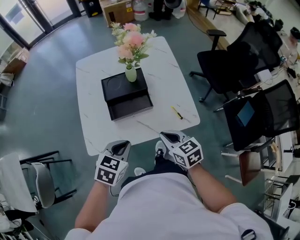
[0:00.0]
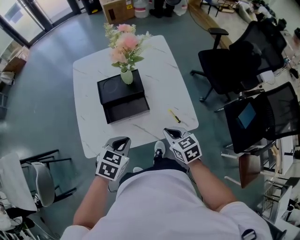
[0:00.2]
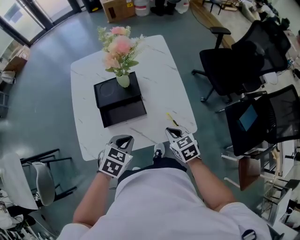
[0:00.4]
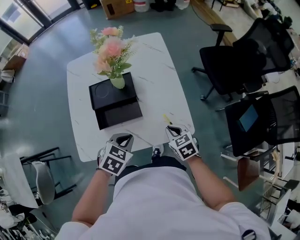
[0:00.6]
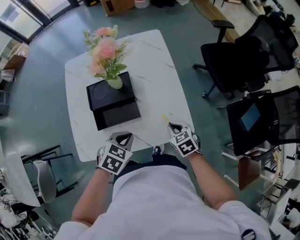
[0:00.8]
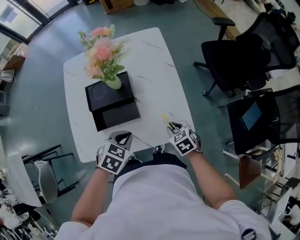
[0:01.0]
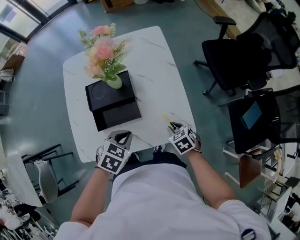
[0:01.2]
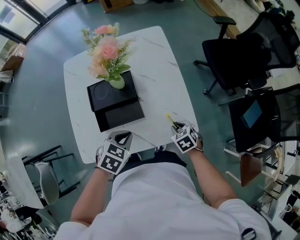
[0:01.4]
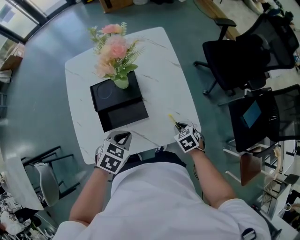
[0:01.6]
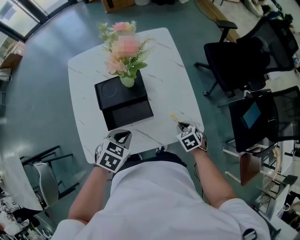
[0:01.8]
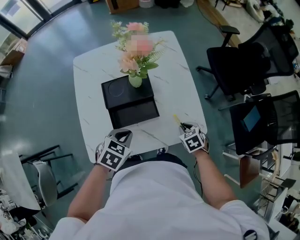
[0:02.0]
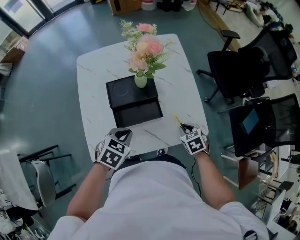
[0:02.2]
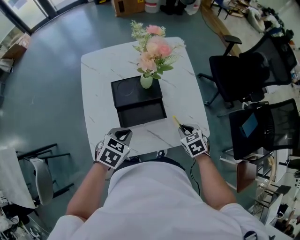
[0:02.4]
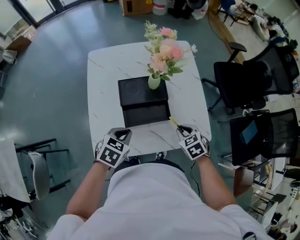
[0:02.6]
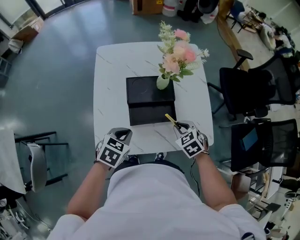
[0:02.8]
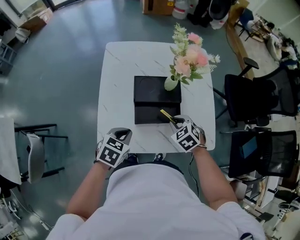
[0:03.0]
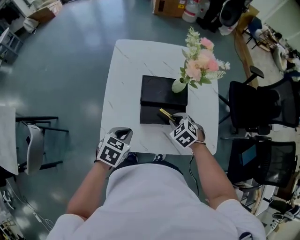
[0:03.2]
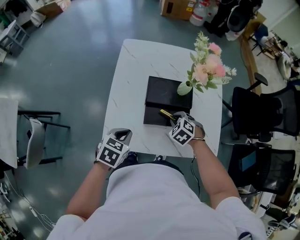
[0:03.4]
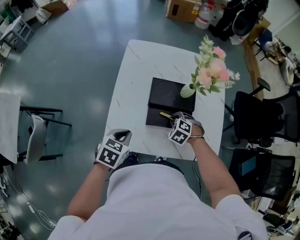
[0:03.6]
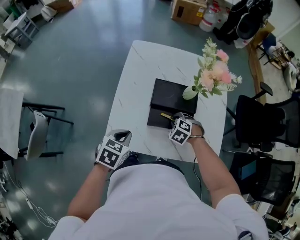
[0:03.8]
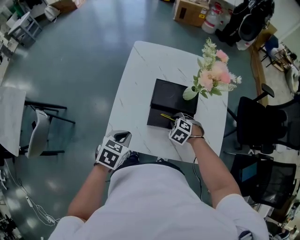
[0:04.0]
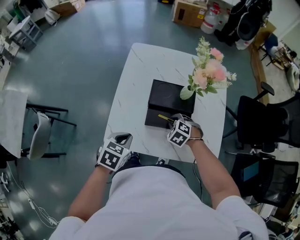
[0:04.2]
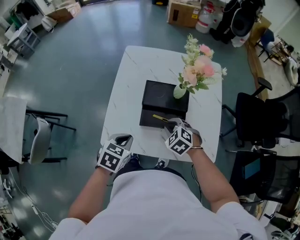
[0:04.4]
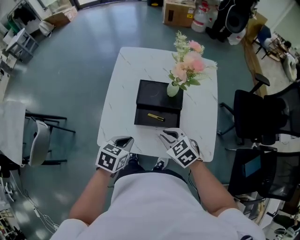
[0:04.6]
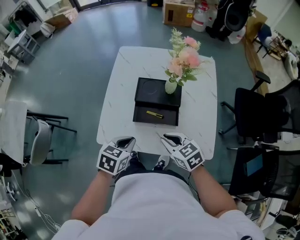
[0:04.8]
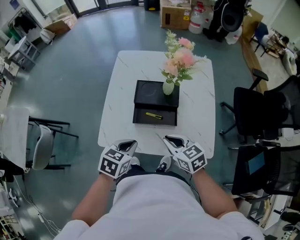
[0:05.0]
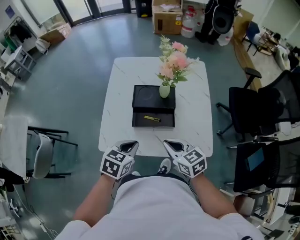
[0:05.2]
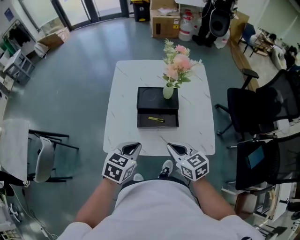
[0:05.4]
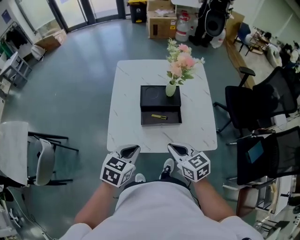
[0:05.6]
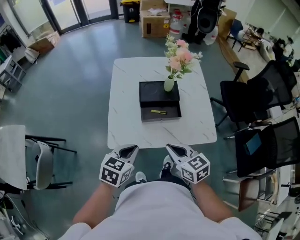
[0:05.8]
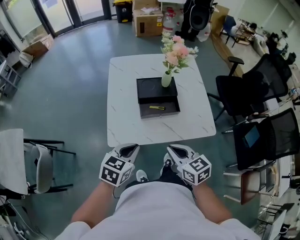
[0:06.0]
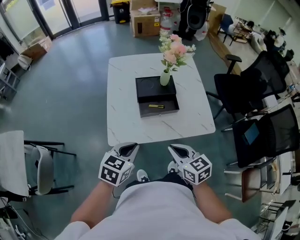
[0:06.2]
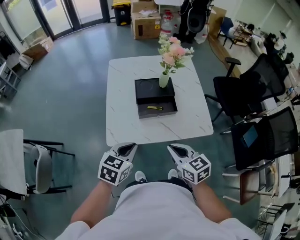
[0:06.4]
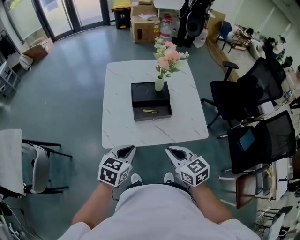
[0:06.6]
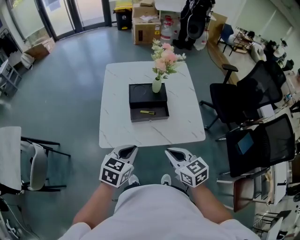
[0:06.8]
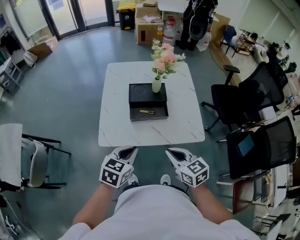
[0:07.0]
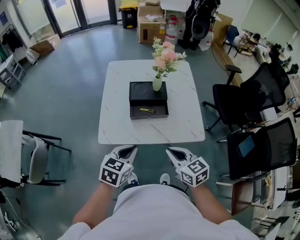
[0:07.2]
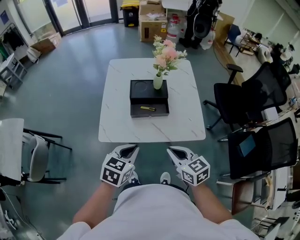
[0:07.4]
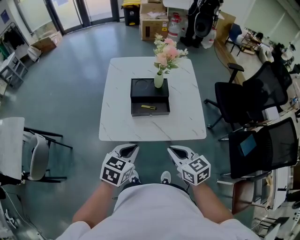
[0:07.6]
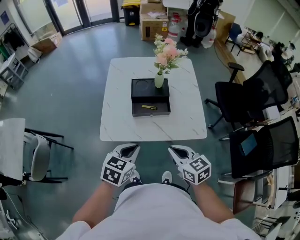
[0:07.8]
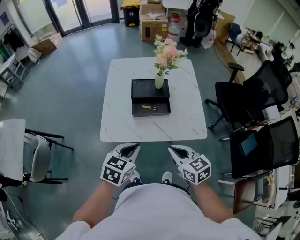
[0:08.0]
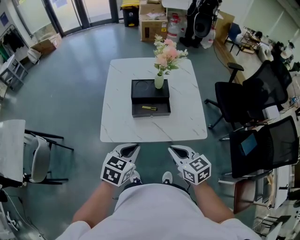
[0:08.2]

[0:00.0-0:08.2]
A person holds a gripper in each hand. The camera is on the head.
0.0 to 1.6 s: The right gripper moves downward, to the right and forward, roughly 20 cm, and points its fingers roughly 30 degrees further downward. Meanwhile the left gripper is displaced forward and downward by about 15 cm.
1.6 to 3.2 s: The two grippers go roughly 20 cm to the left. The left gripper changes its angle by about 20 degrees. Meanwhile the right gripper swivels approximately 40 degrees.
3.2 to 5.0 s: The right gripper is displaced backward and upward by roughly 15 cm, and tilts its fingers approximately 30 degrees upward. The left gripper heads to the right and backward, covering about 10 cm.
5.0 to 6.6 s: The left gripper shifts some 10 cm backward, upward and to the left. Meanwhile the right gripper moves backward and upward, some 15 cm.
6.6 to 8.2 s: The left gripper moves about 5 cm.

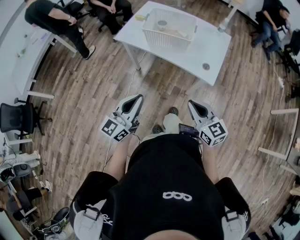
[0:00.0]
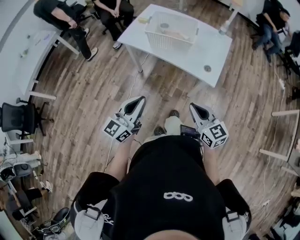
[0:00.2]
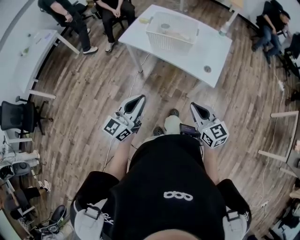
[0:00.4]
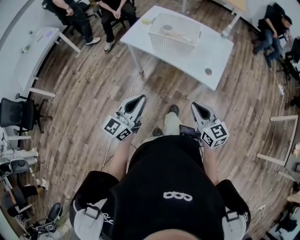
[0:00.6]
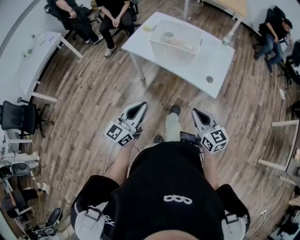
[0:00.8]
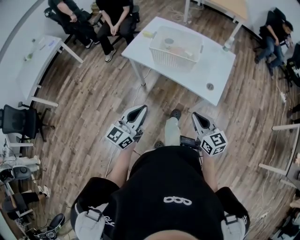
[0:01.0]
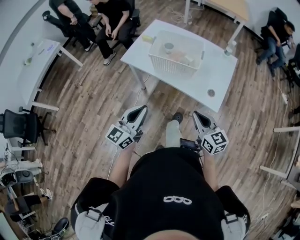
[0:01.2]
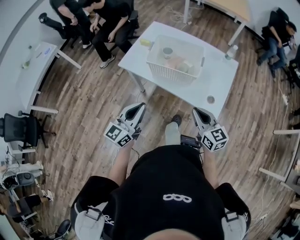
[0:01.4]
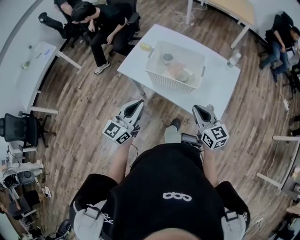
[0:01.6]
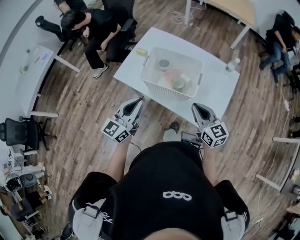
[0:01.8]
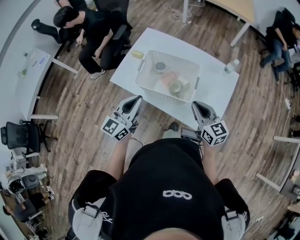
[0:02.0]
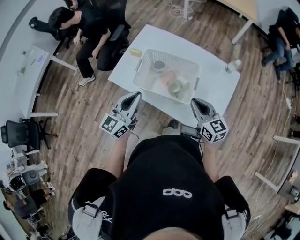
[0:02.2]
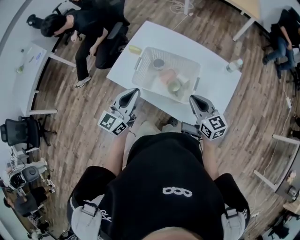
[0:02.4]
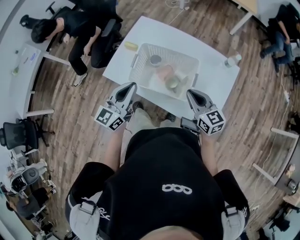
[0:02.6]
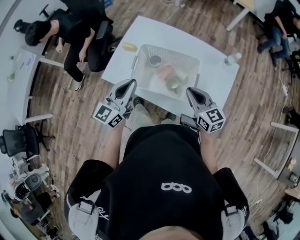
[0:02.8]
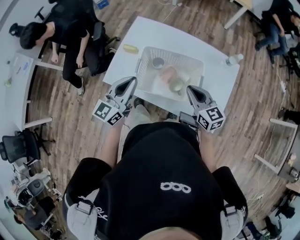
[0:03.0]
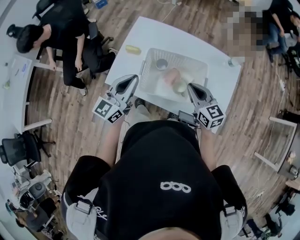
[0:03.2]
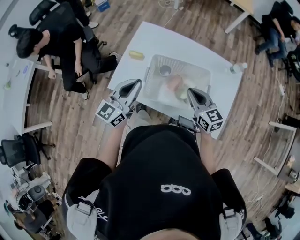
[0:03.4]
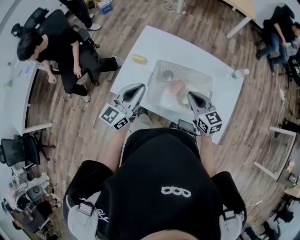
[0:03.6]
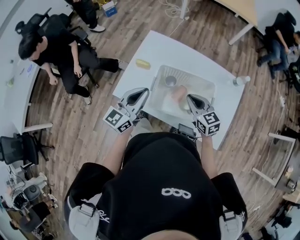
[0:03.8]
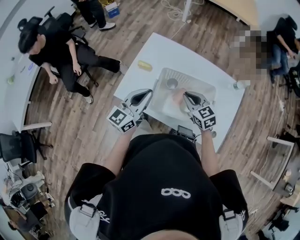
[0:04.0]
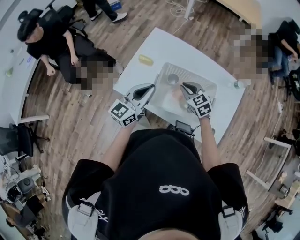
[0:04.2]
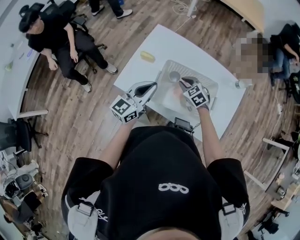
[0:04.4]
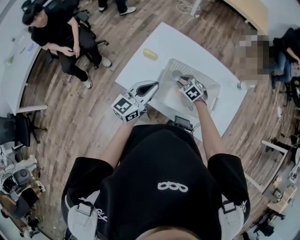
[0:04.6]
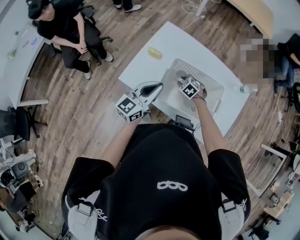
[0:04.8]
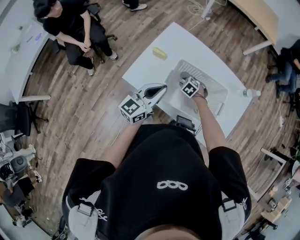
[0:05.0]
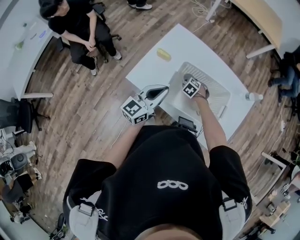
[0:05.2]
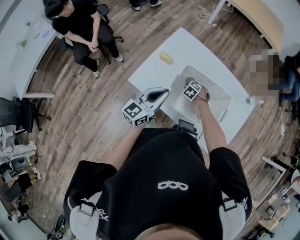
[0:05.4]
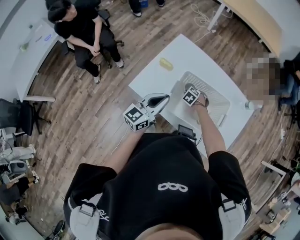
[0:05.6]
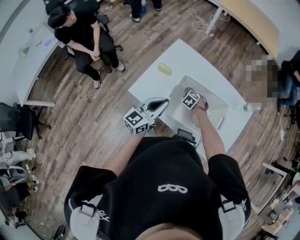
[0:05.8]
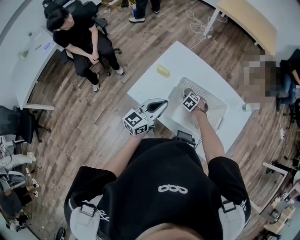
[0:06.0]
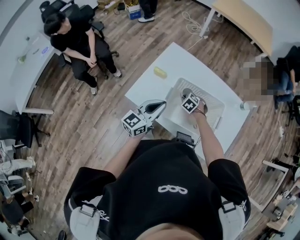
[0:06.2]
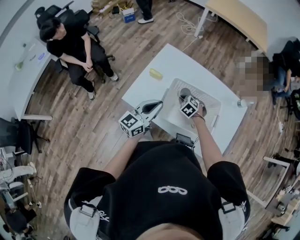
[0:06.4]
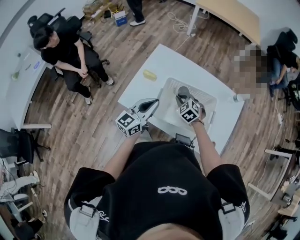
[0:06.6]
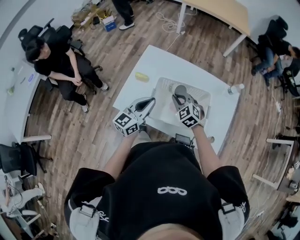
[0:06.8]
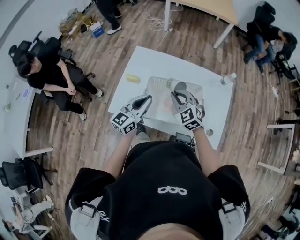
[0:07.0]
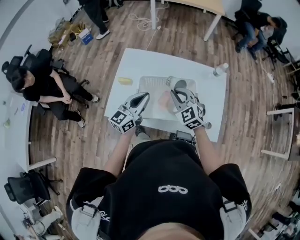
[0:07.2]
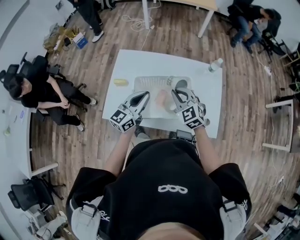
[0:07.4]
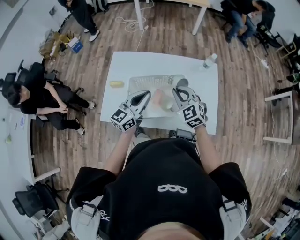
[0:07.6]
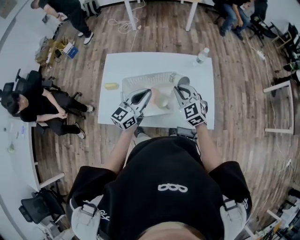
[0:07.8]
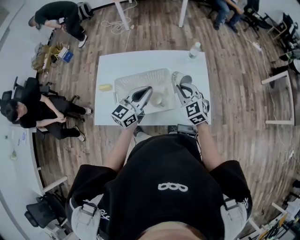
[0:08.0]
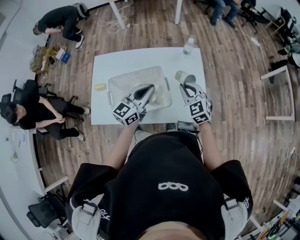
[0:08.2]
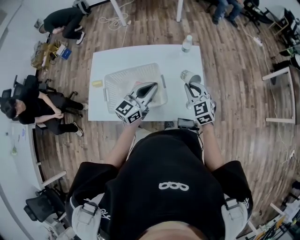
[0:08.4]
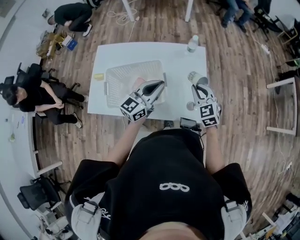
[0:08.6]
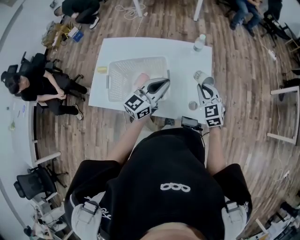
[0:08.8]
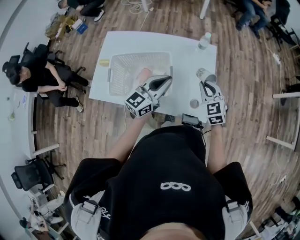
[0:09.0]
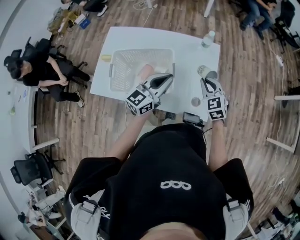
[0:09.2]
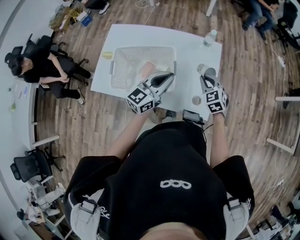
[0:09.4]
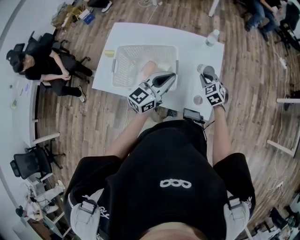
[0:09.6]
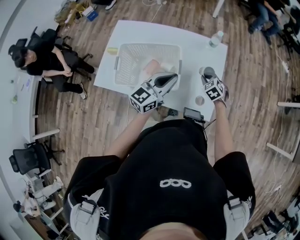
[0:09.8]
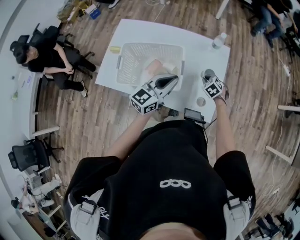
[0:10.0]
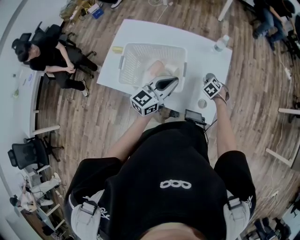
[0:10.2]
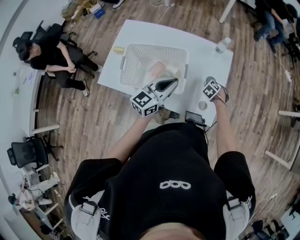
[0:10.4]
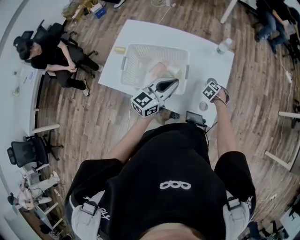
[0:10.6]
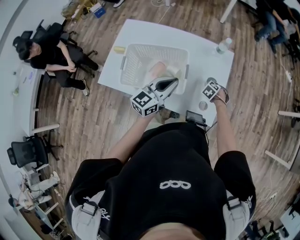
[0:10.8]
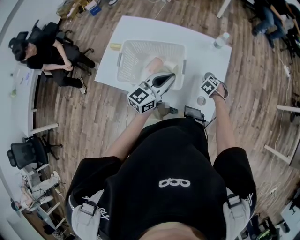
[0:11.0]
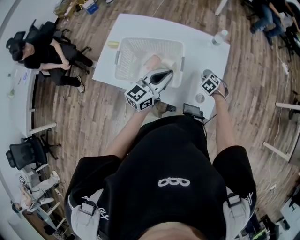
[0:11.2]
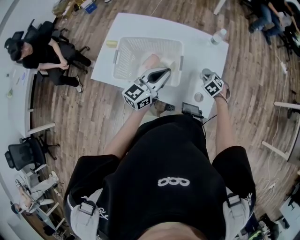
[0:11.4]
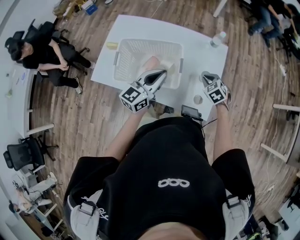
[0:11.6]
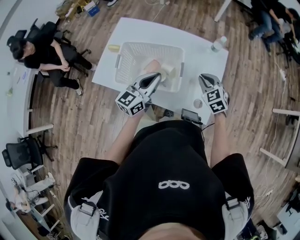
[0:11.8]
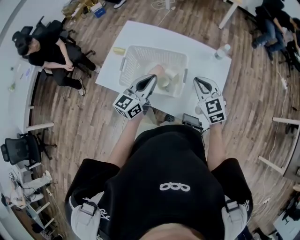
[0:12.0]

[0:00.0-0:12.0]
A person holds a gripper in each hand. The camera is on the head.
0.0 to 1.6 s: Both grippers move forward, about 25 cm.
1.6 to 3.0 s: The grippers both shift forward by approximately 25 cm.
3.0 to 4.4 s: The left gripper ends up some 5 cm from where it was. The right gripper shifts approximately 20 cm downward, forward and to the left, and rotates roughly 40 degrees.
4.4 to 6.0 s: The right gripper is displaced downward by about 15 cm, and turns by about 30 degrees.
6.0 to 7.6 s: The right gripper goes some 25 cm upward, and tips its fingers upward by some 50 degrees. Meanwhile the left gripper changes place by about 15 cm, and turns by some 20 degrees.
7.6 to 9.0 s: Both grippers travel together to the right, approximately 25 cm.
9.0 to 10.4 s: The right gripper shifts roughly 25 cm downward, and angles its fingers downward, by roughly 50 degrees.
10.4 to 12.0 s: The right gripper is displaced upward by approximately 30 cm, and angles its fingers upward, by approximately 50 degrees; the left gripper changes place by about 10 cm.

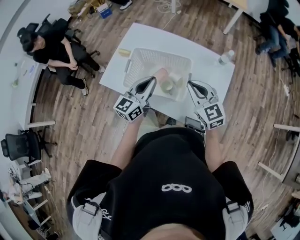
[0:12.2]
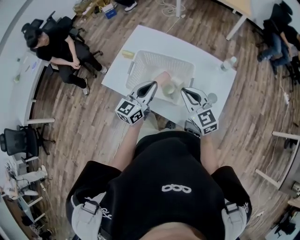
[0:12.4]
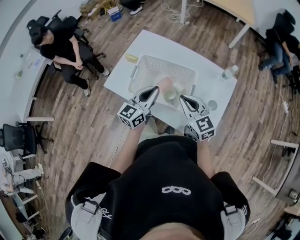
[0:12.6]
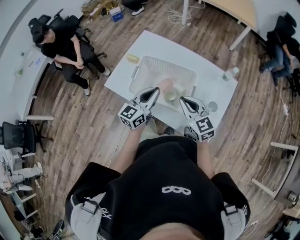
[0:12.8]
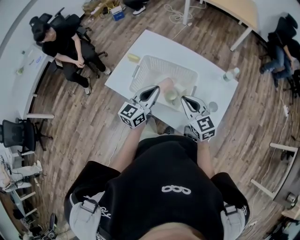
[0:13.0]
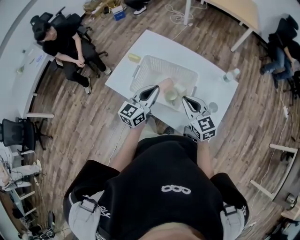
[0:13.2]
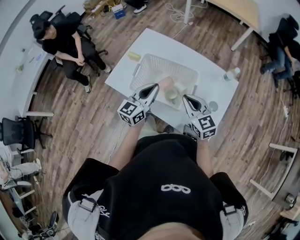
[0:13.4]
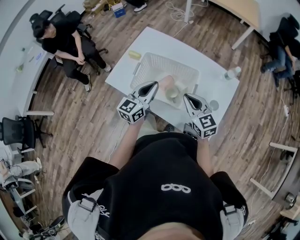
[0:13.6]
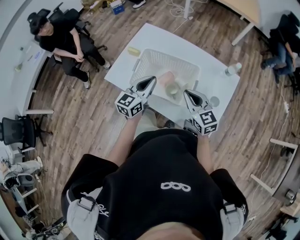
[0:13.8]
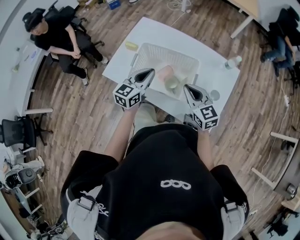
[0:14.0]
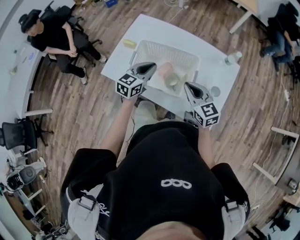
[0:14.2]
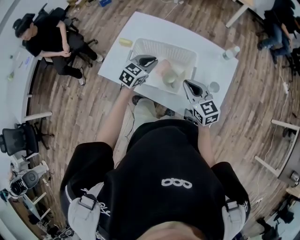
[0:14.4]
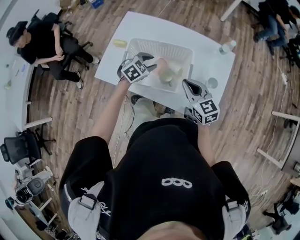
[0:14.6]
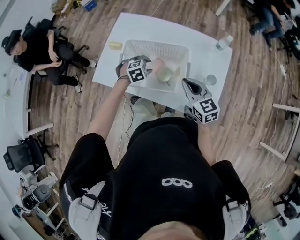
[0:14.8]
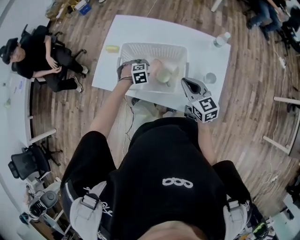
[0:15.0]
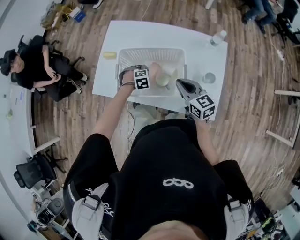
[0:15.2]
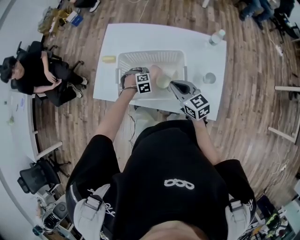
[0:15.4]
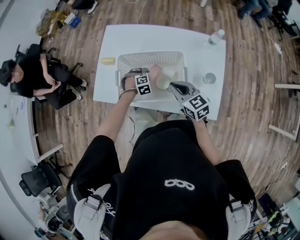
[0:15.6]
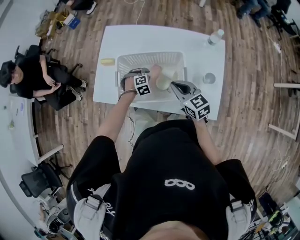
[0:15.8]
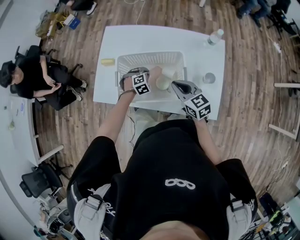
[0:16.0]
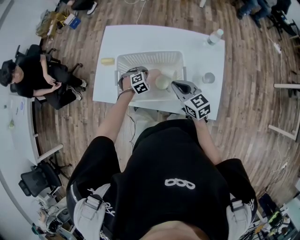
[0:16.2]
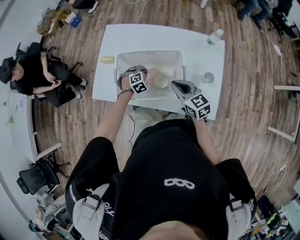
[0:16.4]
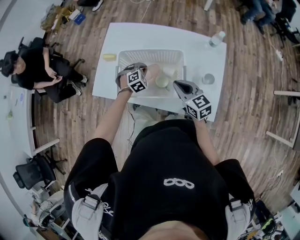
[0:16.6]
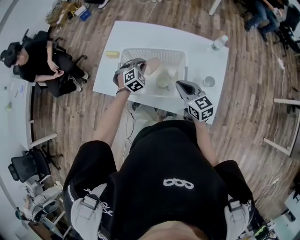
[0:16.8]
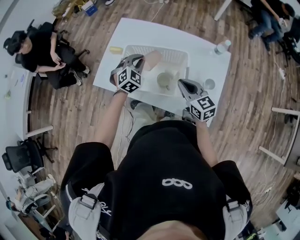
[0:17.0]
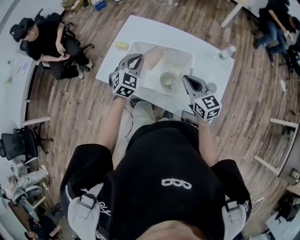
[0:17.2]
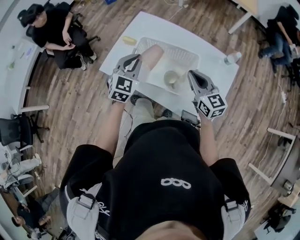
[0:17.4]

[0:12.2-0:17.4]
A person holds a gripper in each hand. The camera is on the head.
12.2 to 14.0 s: The right gripper shifts by approximately 5 cm. Meanwhile the left gripper shifts by roughly 5 cm.
14.0 to 15.6 s: The right gripper shifts some 5 cm downward. The left gripper is displaced downward by about 30 cm, tips its fingers downward by about 60 degrees, and opens.
15.6 to 17.4 s: The right gripper travels upward by approximately 10 cm; the left gripper goes approximately 30 cm upward, tips its fingers upward by approximately 50 degrees, and closes its fingers.
